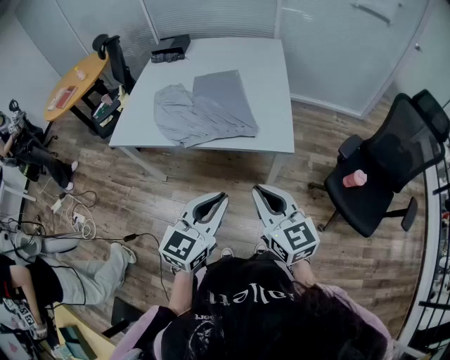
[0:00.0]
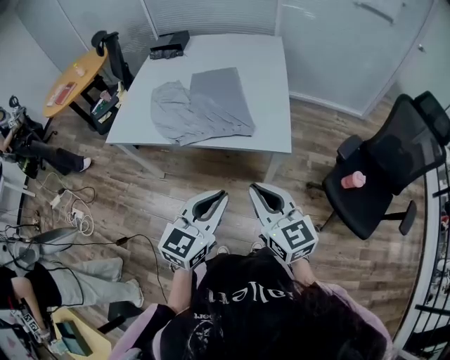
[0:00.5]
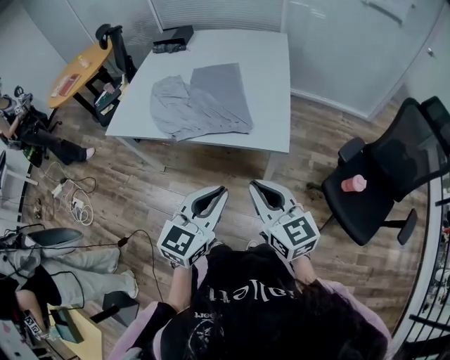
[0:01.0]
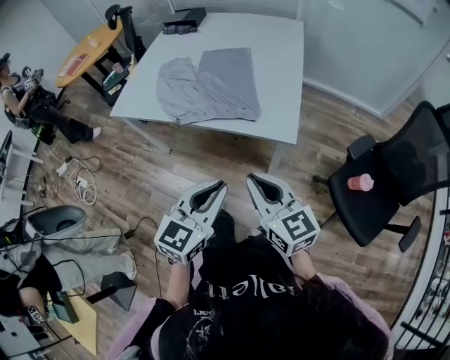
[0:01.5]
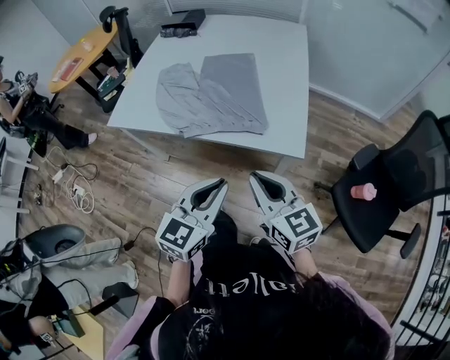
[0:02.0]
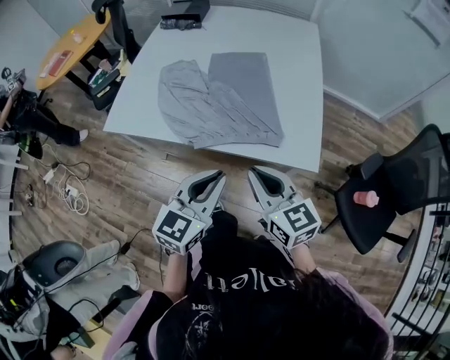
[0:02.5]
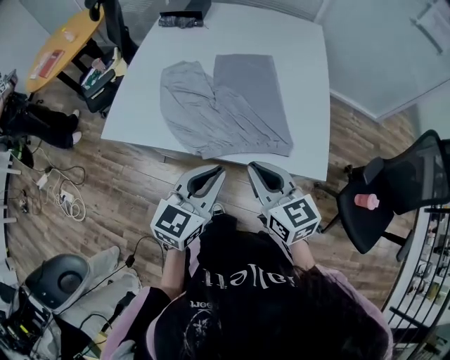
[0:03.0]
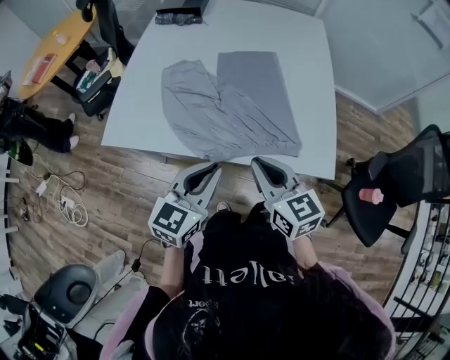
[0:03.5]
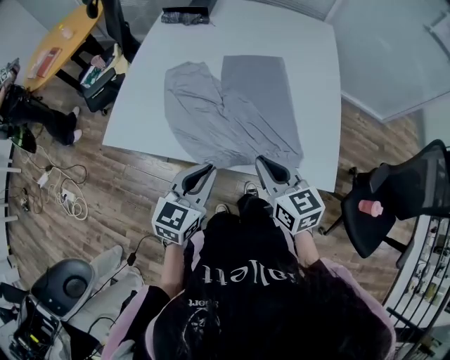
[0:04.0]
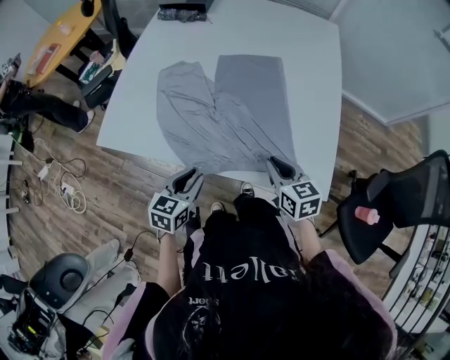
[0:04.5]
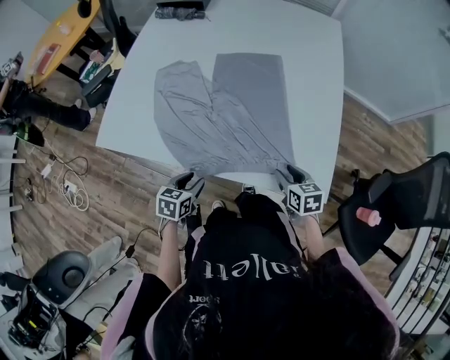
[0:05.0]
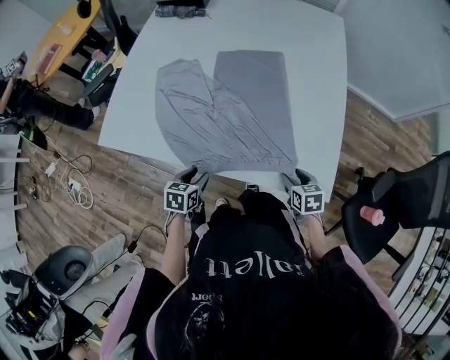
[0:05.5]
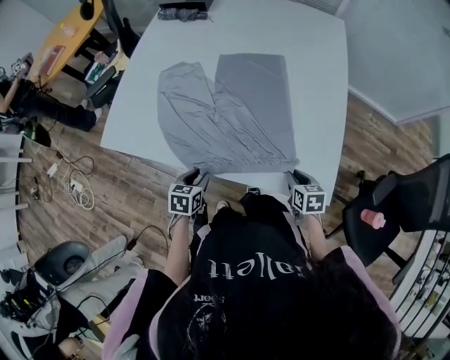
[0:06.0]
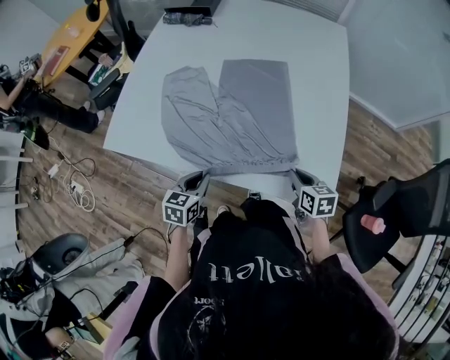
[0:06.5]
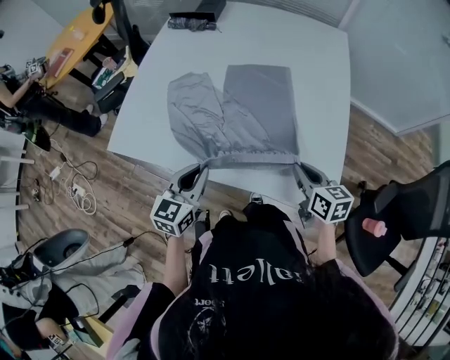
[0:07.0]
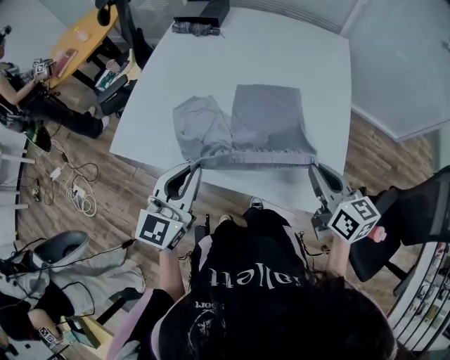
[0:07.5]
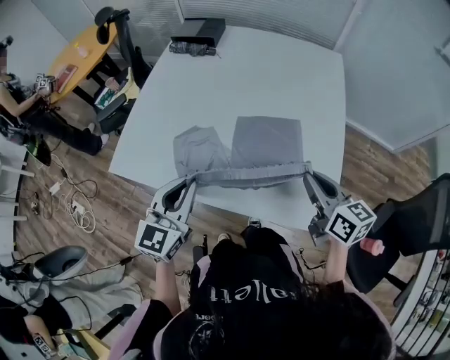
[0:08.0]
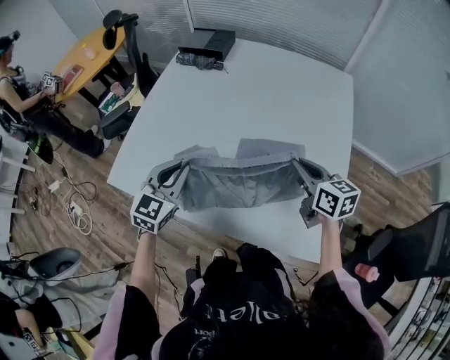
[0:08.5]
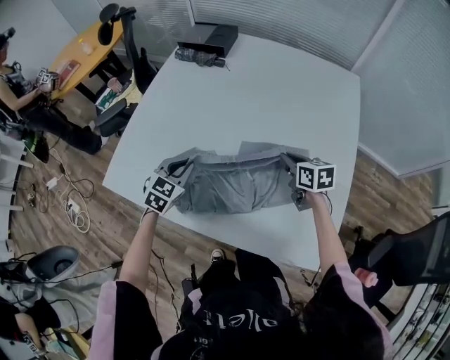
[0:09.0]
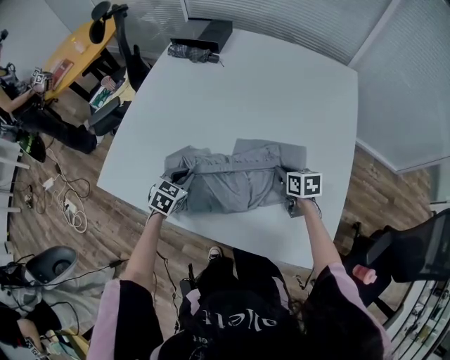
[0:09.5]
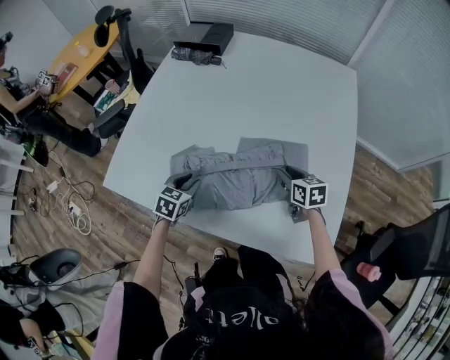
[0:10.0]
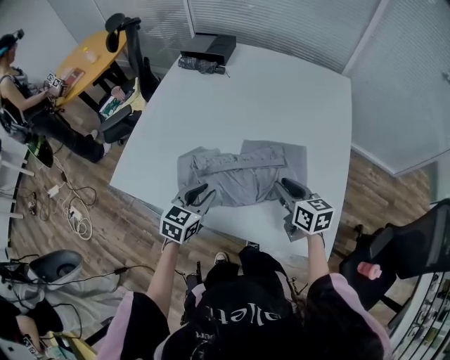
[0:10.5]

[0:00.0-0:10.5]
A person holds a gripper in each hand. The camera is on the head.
0.0 to 2.0 s: The two grippers go some 10 cm forward.
2.0 to 4.0 s: The grippers both shift forward and to the left by approximately 25 cm.
4.0 to 6.5 s: The left gripper heads downward, covering approximately 15 cm, rotates roughly 20 degrees, and opens, then closes again. The right gripper is displaced to the right and downward by roughly 25 cm, changes its angle by about 30 degrees, and opens, then closes again.
6.5 to 8.5 s: The right gripper travels forward and upward by some 25 cm, and rotates some 20 degrees, while the left gripper is displaced upward and forward by approximately 25 cm, and rotates approximately 30 degrees.
8.5 to 10.5 s: The right gripper travels downward and back again, about 20 cm each way, and opens, while the left gripper goes approximately 10 cm downward and backward.

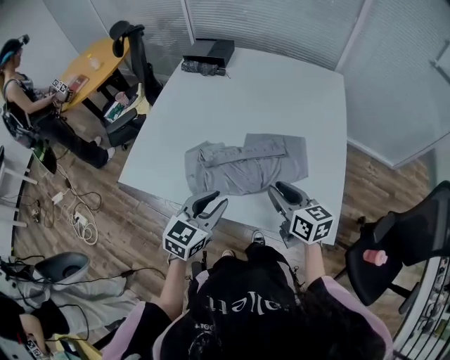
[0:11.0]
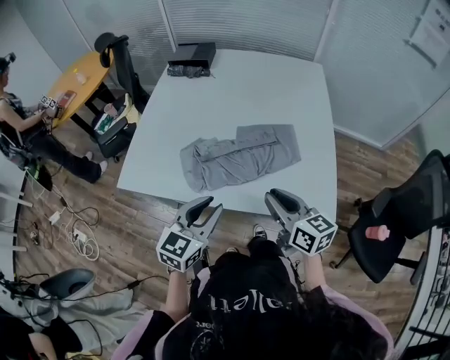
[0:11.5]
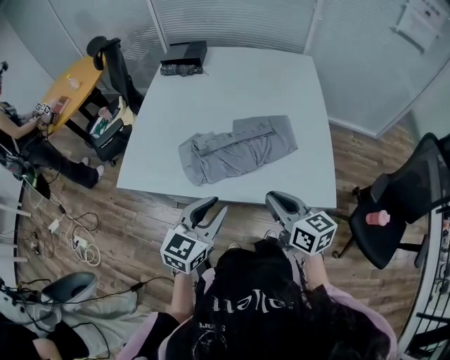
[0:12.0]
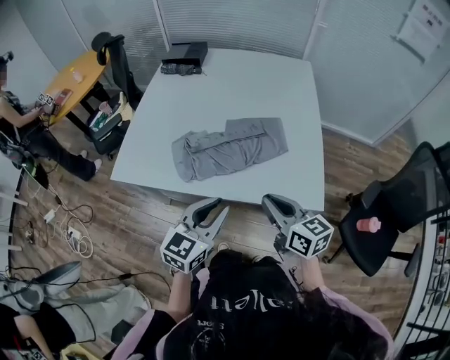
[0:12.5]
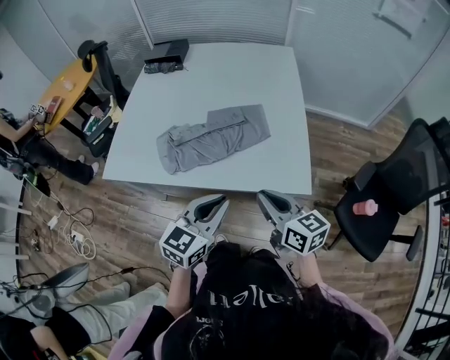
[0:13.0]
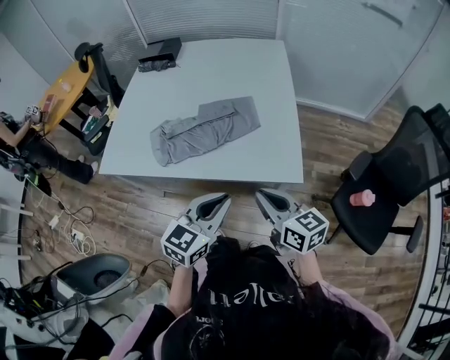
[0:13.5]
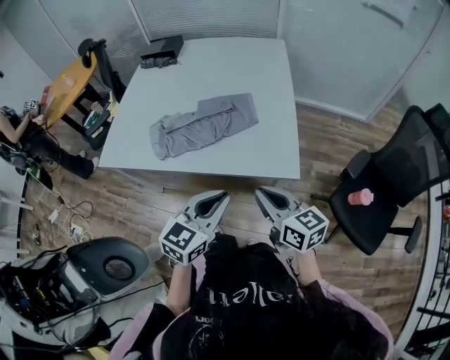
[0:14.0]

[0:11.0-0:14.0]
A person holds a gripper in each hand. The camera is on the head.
11.0 to 12.5 s: The right gripper heads backward, covering some 15 cm, and closes up, while the left gripper goes approximately 15 cm backward and upward.
12.5 to 14.0 s: Both grippers travel together to the right and backward, some 15 cm.

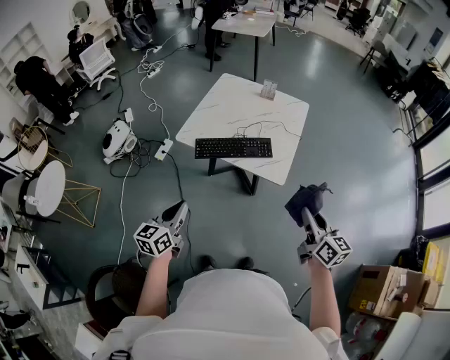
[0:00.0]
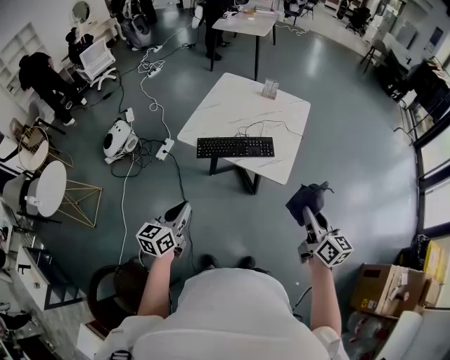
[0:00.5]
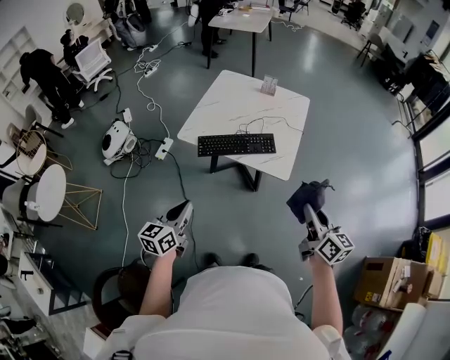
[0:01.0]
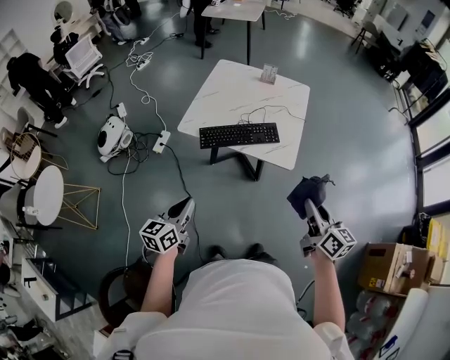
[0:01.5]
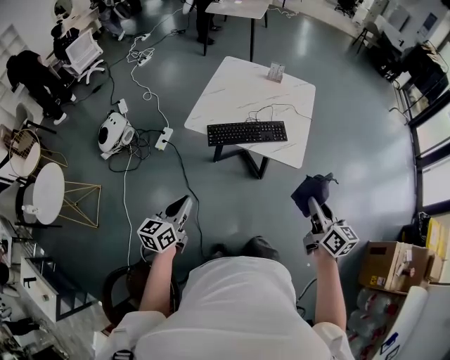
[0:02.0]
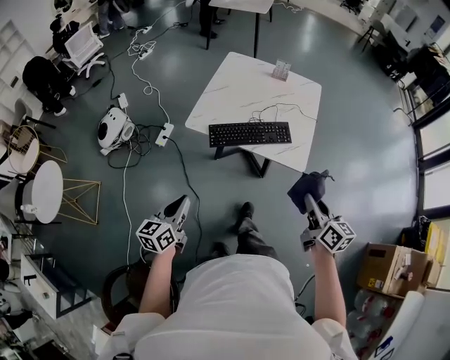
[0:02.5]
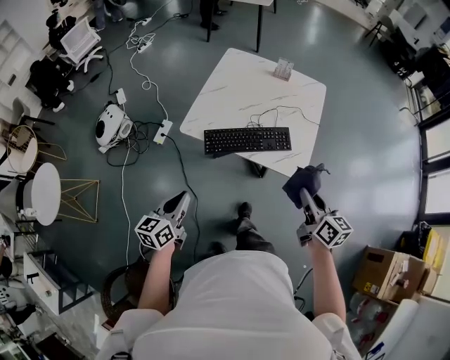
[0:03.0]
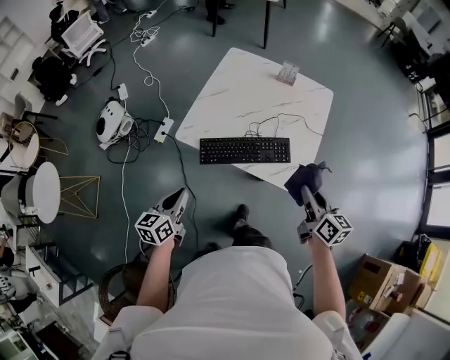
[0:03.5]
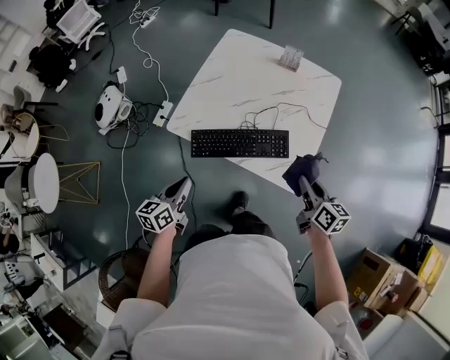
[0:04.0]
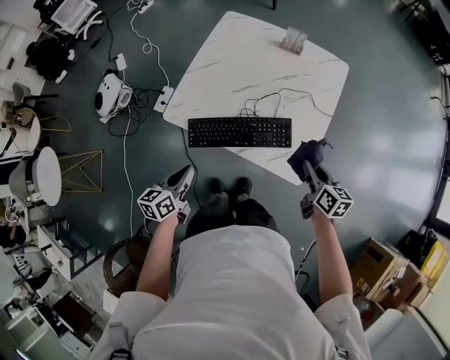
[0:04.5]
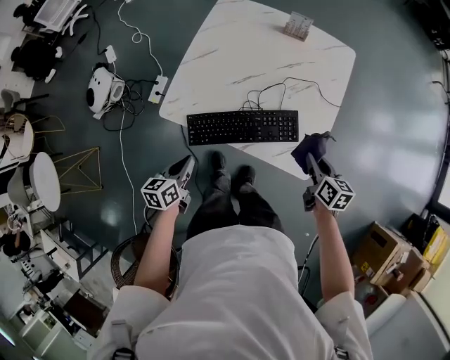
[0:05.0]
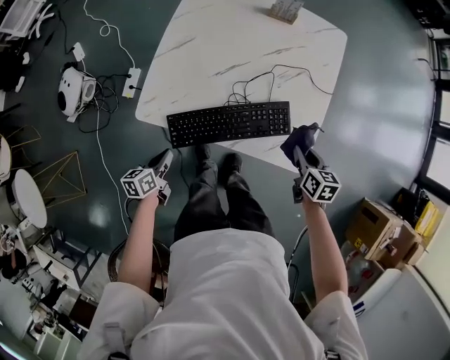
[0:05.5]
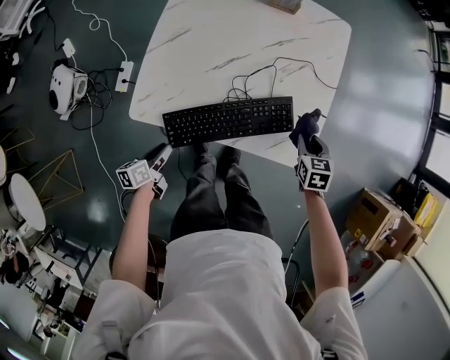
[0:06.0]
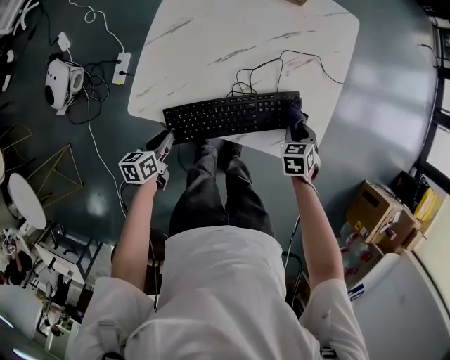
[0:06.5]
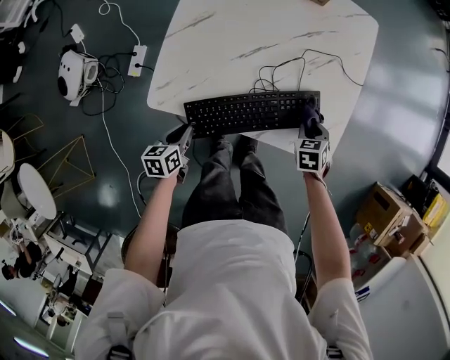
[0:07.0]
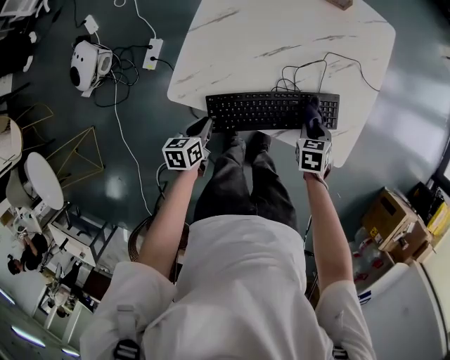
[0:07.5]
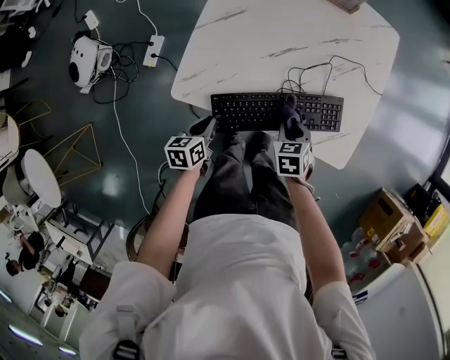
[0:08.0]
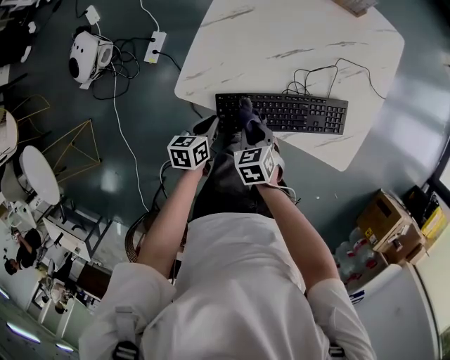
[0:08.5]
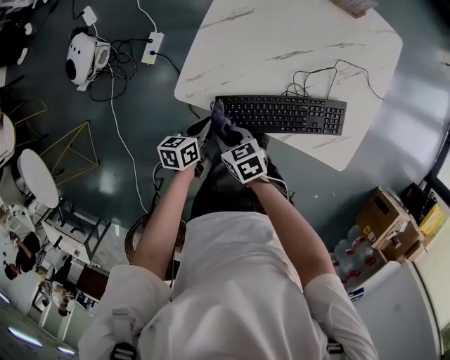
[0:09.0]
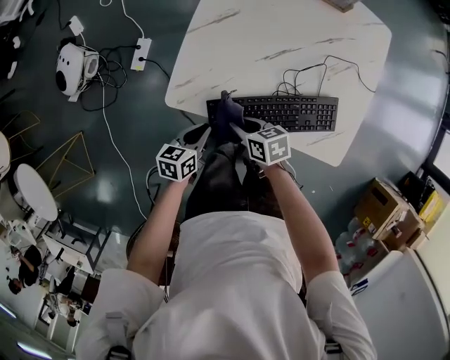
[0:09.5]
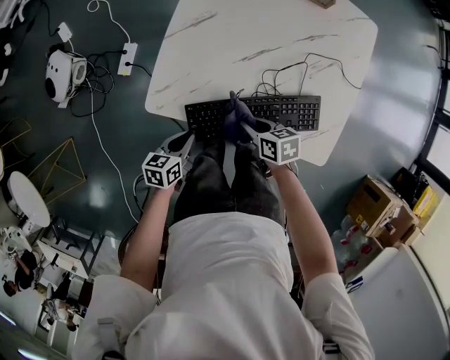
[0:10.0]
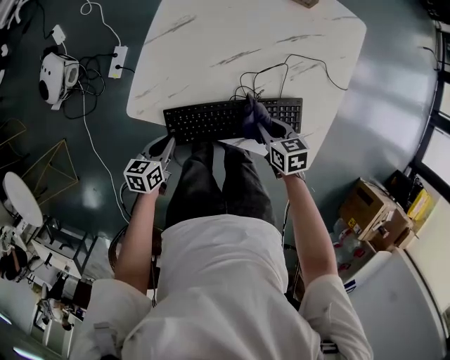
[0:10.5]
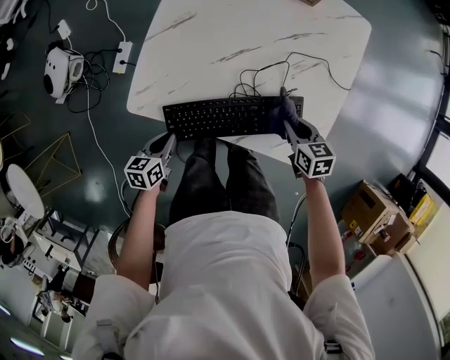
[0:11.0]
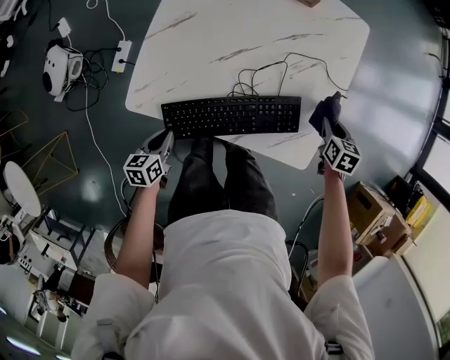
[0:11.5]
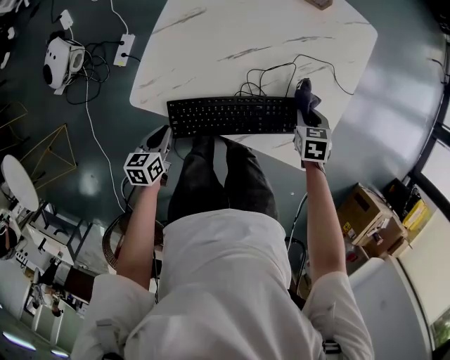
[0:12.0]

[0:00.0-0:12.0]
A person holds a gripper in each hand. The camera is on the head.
0.0 to 2.0 s: Both grippers travel together to the left, some 10 cm.
2.0 to 4.0 s: The right gripper is displaced forward and downward by roughly 35 cm; the left gripper travels forward by some 25 cm.
4.0 to 6.0 s: The grippers both shift downward and forward by roughly 25 cm. The left gripper swivels some 30 degrees, and opens. Meanwhile the right gripper tips its fingers downward by approximately 30 degrees.
6.0 to 8.0 s: The right gripper goes about 20 cm to the left and backward.
8.0 to 10.0 s: The right gripper rotates roughly 40 degrees.
10.0 to 12.0 s: The right gripper heads to the right, covering some 25 cm, and changes its angle by approximately 40 degrees.

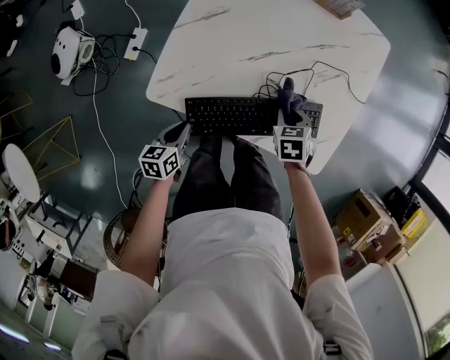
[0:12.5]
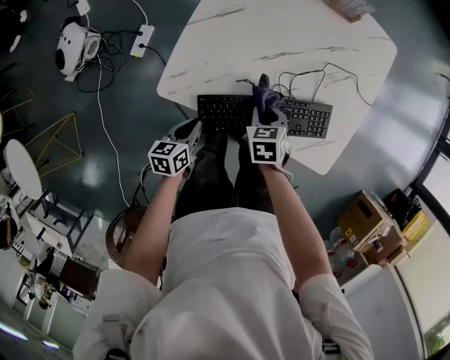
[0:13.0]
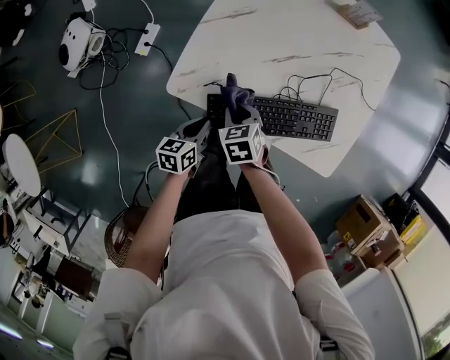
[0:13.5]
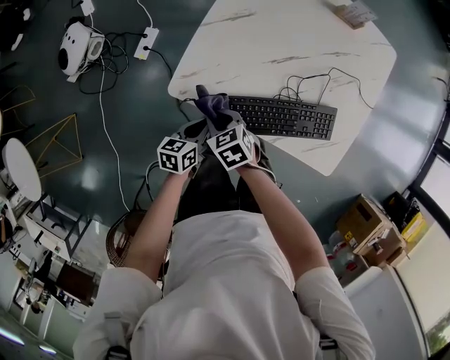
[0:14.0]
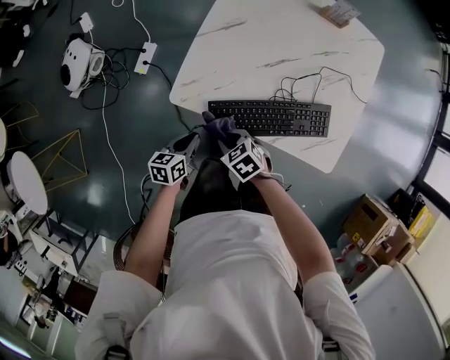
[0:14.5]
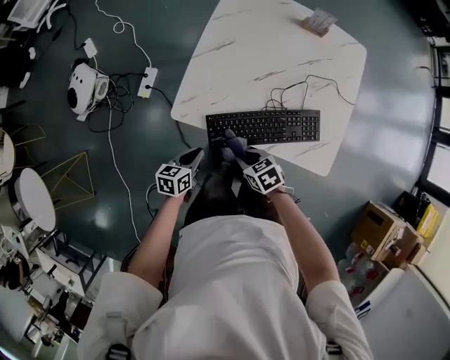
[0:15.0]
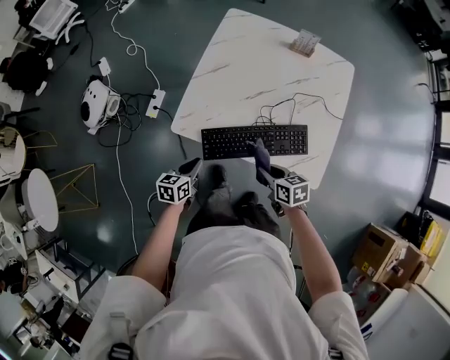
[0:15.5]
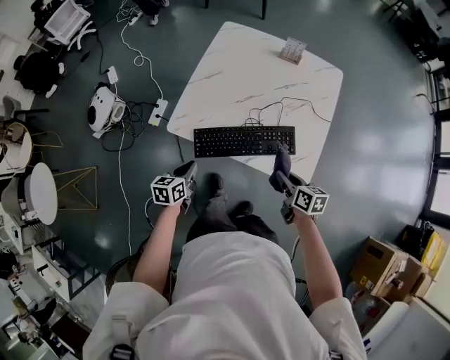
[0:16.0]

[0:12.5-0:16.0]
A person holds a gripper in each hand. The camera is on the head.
12.5 to 14.5 s: The left gripper changes place by about 5 cm, while the right gripper changes place by roughly 30 cm, and swivels about 30 degrees.
14.5 to 16.0 s: The right gripper moves to the right and upward, some 30 cm, and rotates approximately 50 degrees, while the left gripper goes approximately 15 cm upward, to the right and backward.
